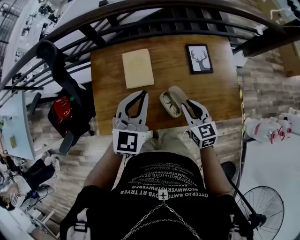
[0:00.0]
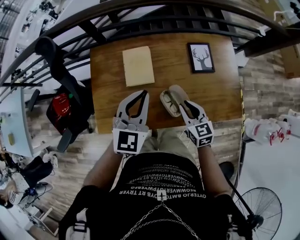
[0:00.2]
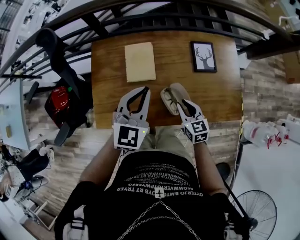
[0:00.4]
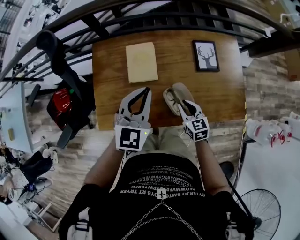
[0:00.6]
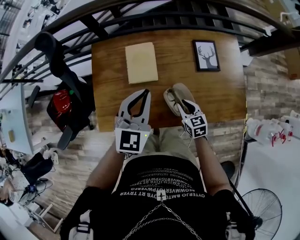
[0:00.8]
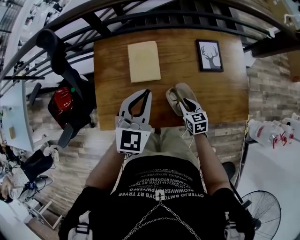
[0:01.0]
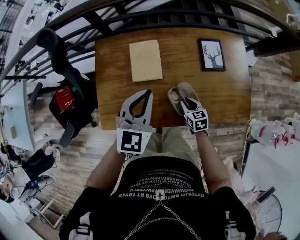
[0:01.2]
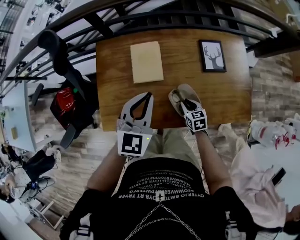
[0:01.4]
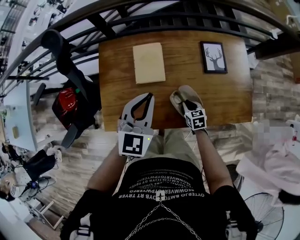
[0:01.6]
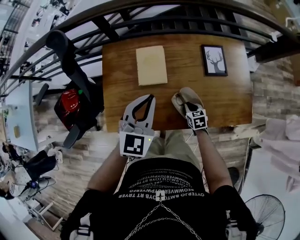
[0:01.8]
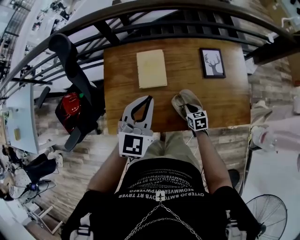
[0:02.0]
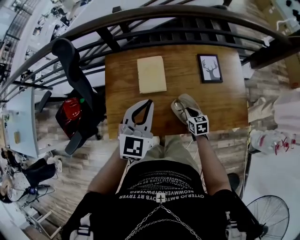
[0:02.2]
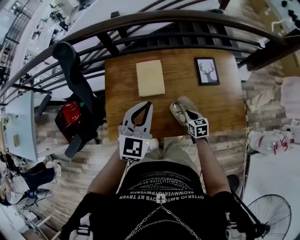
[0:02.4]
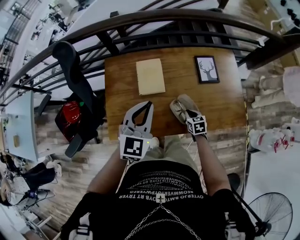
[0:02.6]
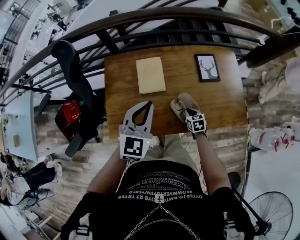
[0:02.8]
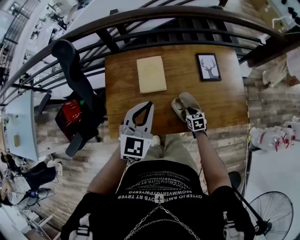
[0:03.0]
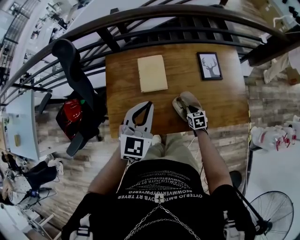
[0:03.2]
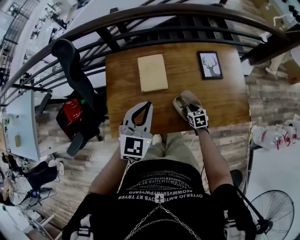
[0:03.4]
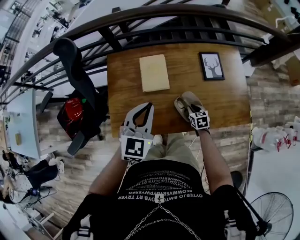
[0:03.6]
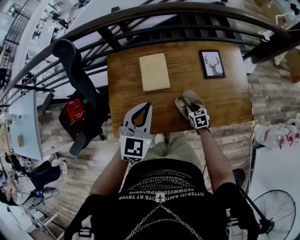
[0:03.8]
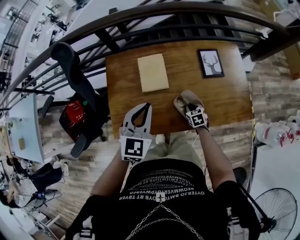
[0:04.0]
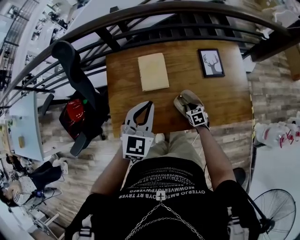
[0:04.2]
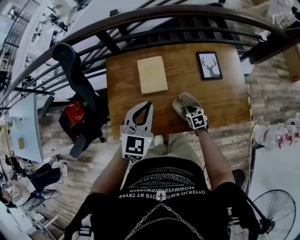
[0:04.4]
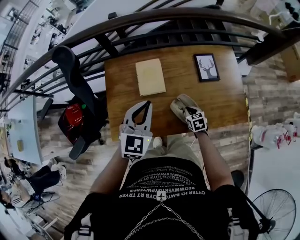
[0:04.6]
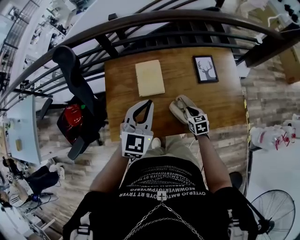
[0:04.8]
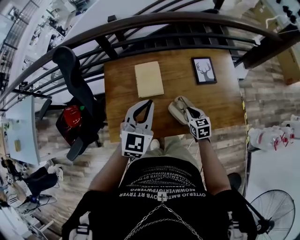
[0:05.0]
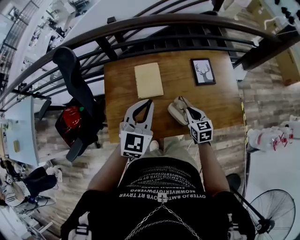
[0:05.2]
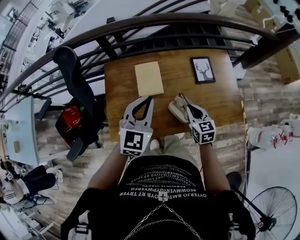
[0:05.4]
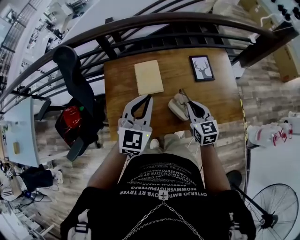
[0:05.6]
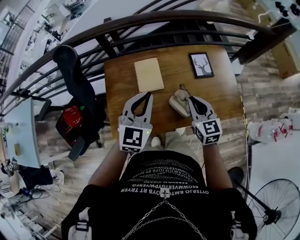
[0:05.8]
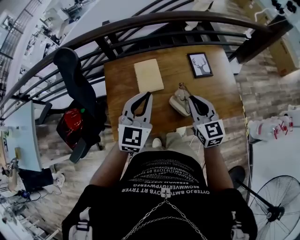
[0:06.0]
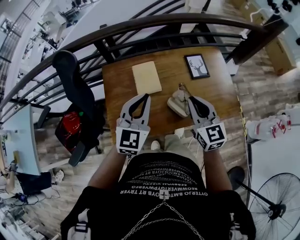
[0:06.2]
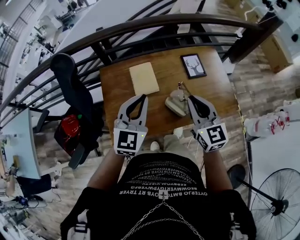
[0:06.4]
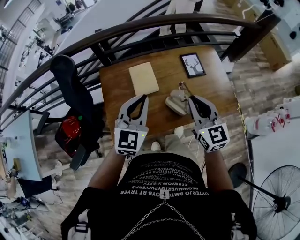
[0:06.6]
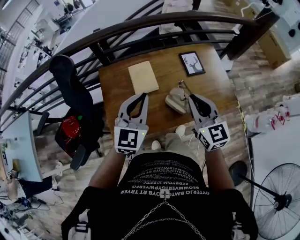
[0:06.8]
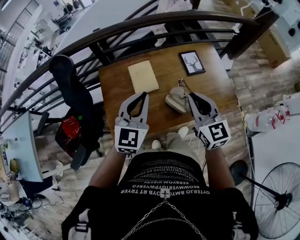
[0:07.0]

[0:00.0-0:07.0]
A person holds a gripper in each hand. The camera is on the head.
0.0 to 1.4 s: The left gripper shifts by some 5 cm. The right gripper moves downward, some 20 cm.
1.4 to 2.8 s: The left gripper shifts by some 5 cm.
2.8 to 4.2 s: The grippers stay close to where they were, moving slightly.
4.2 to 5.6 s: The left gripper travels upward by some 5 cm; the right gripper is displaced upward by some 25 cm, and points its fingers approximately 30 degrees further upward.
5.6 to 7.0 s: The right gripper moves upward, some 15 cm.

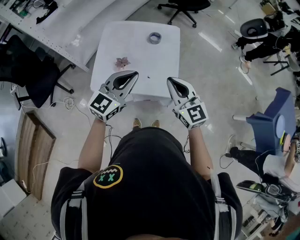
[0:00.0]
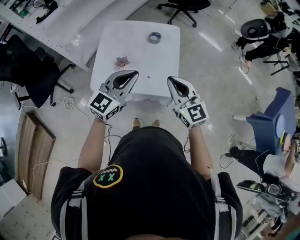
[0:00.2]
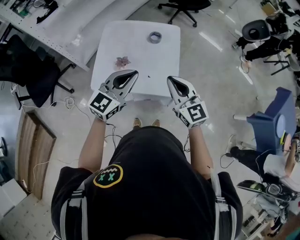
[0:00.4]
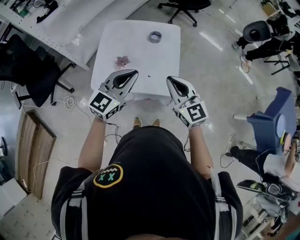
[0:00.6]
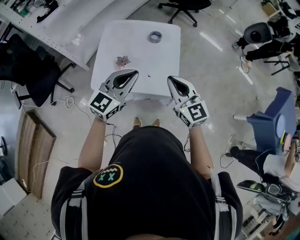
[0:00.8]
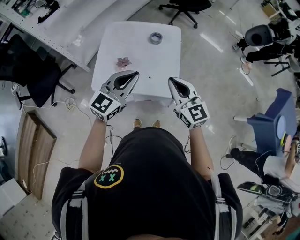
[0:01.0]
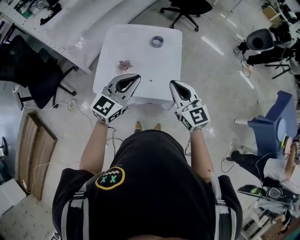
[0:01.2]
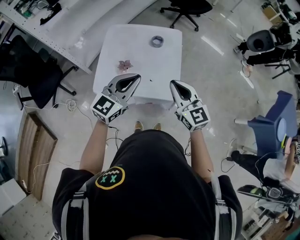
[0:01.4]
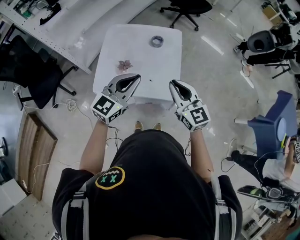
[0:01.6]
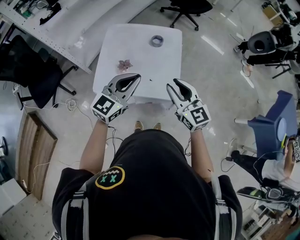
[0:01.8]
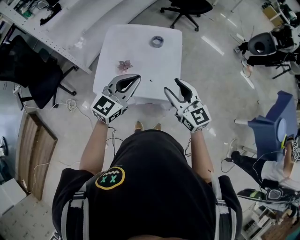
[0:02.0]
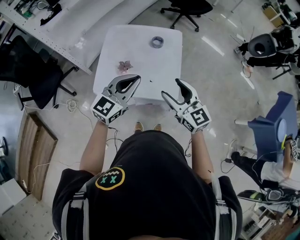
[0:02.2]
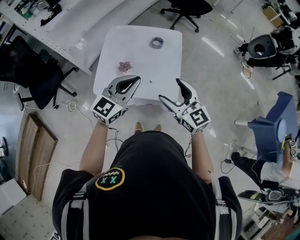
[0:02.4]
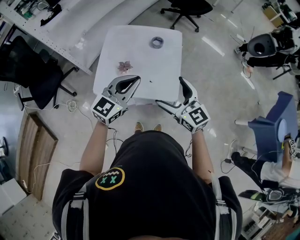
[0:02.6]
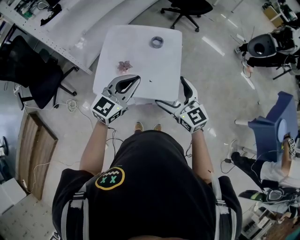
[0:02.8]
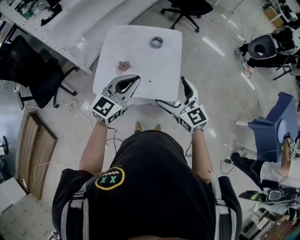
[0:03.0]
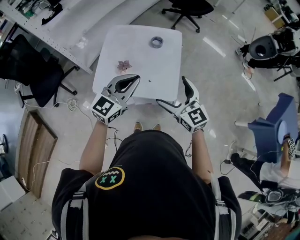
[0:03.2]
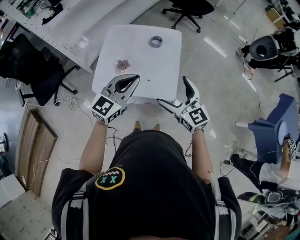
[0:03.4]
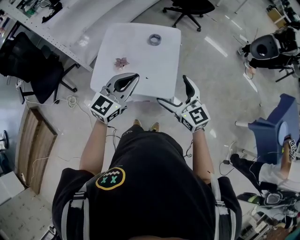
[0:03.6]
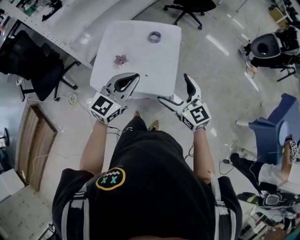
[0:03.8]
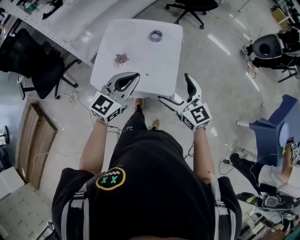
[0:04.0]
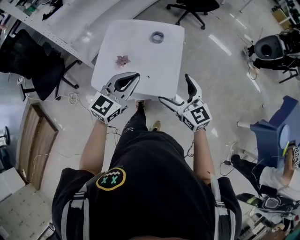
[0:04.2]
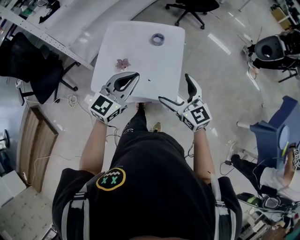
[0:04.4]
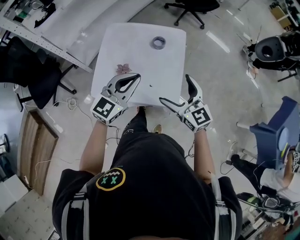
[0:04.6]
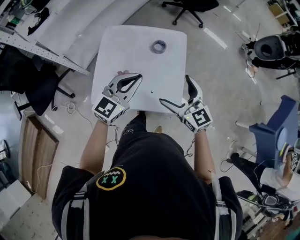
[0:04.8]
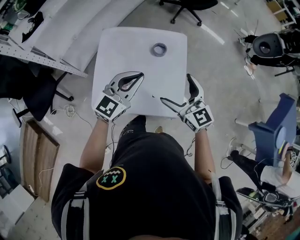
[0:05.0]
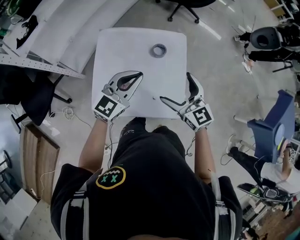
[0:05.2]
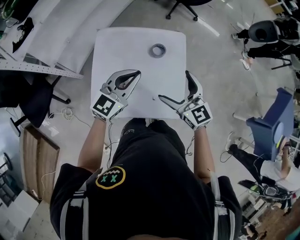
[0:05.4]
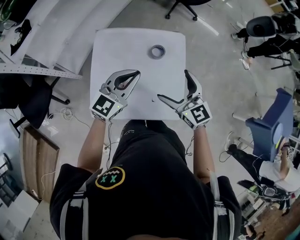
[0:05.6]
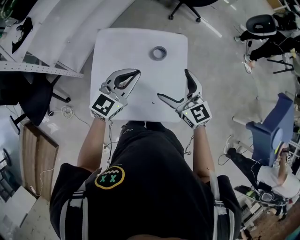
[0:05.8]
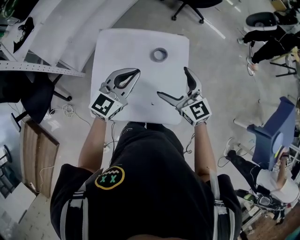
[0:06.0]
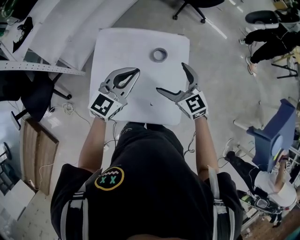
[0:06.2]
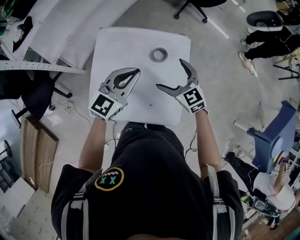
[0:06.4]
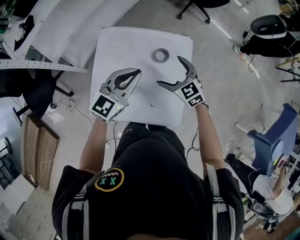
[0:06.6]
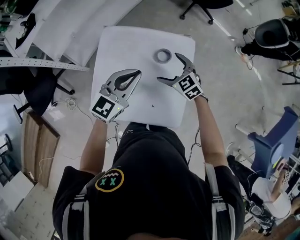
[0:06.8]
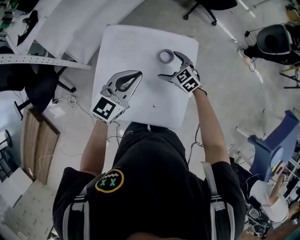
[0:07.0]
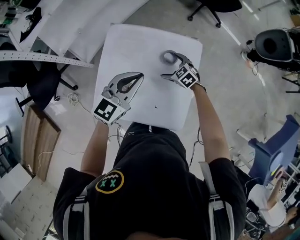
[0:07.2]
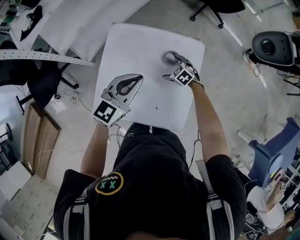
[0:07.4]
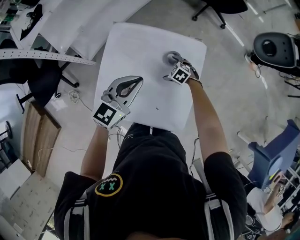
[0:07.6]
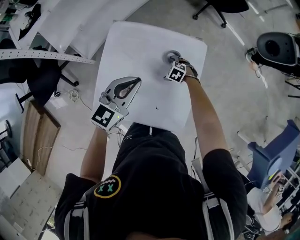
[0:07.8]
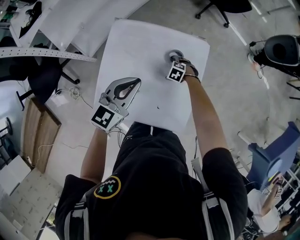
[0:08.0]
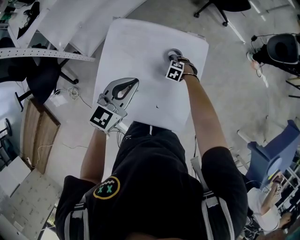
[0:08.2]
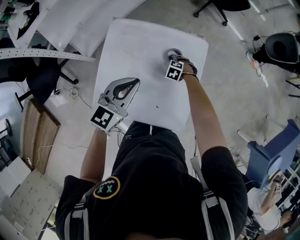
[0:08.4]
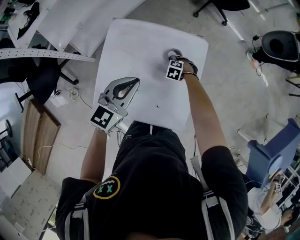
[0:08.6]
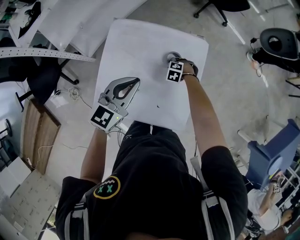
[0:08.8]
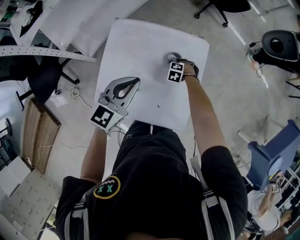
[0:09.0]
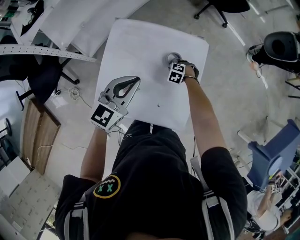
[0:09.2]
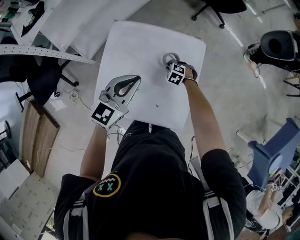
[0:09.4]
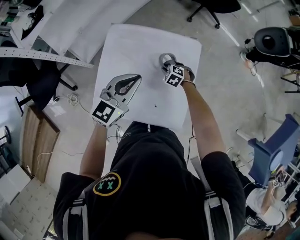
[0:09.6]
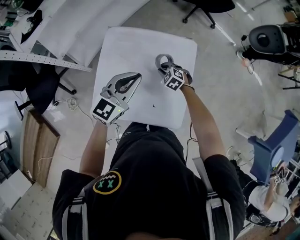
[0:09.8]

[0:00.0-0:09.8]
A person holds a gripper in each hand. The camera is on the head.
0.0 to 1.4 s: Both grippers stay put.
1.4 to 2.8 s: The right gripper opens up.
2.8 to 4.2 s: The right gripper shifts about 5 cm to the right.
4.2 to 5.6 s: The two grippers go about 25 cm forward.
5.6 to 7.0 s: The right gripper travels downward and forward by some 25 cm, and rotates some 30 degrees.
7.0 to 8.4 s: The right gripper shifts some 20 cm downward, and angles its fingers downward, by approximately 30 degrees.
8.4 to 9.8 s: The right gripper moves upward, some 10 cm, changes its angle by roughly 20 degrees, and closes up.

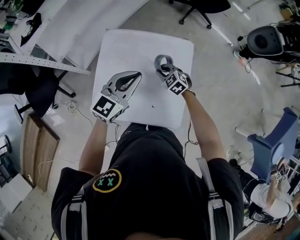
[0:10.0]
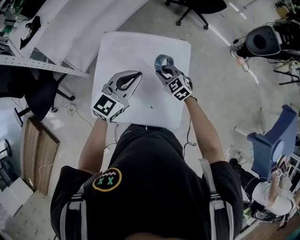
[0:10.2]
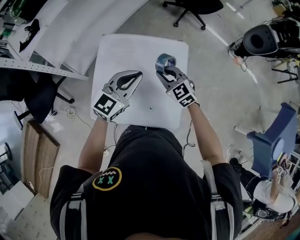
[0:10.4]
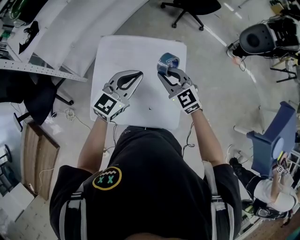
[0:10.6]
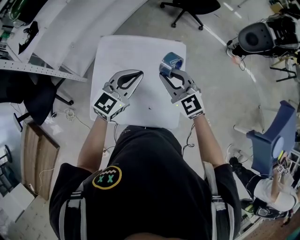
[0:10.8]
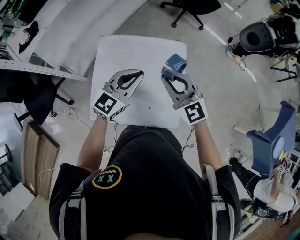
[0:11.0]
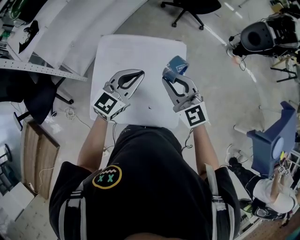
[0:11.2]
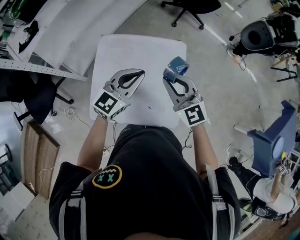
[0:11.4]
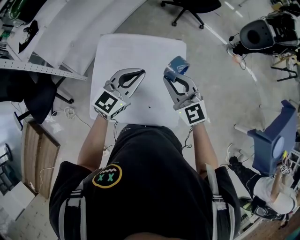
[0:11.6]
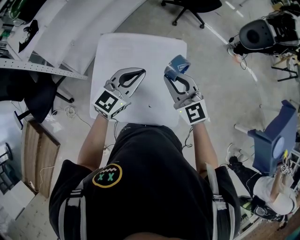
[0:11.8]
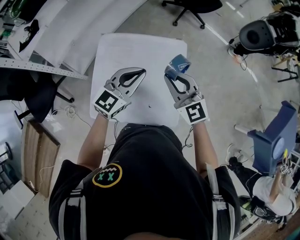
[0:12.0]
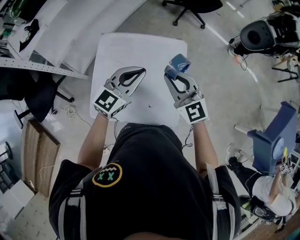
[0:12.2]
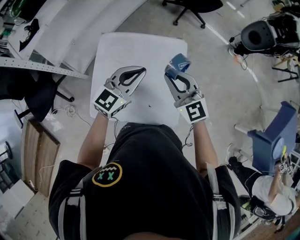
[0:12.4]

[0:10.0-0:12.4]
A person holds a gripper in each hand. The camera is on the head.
10.0 to 11.2 s: The right gripper travels upward by about 25 cm, and angles its fingers upward, by some 40 degrees.
11.2 to 12.4 s: The grippers move only a little.

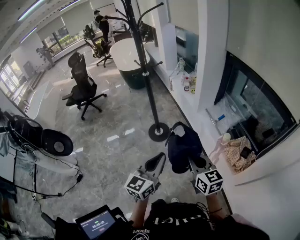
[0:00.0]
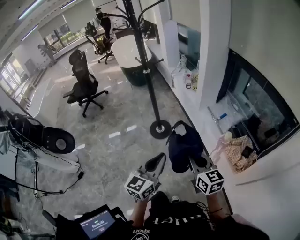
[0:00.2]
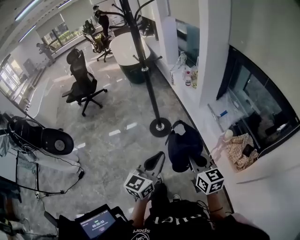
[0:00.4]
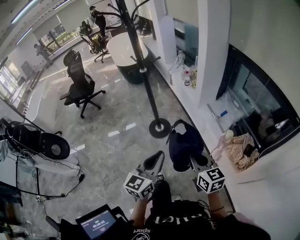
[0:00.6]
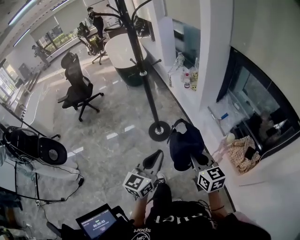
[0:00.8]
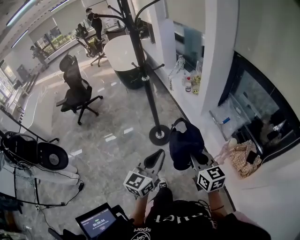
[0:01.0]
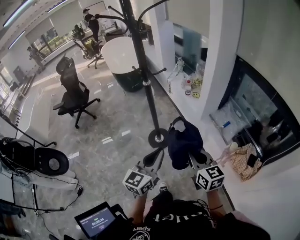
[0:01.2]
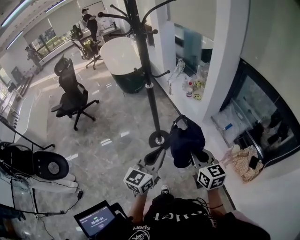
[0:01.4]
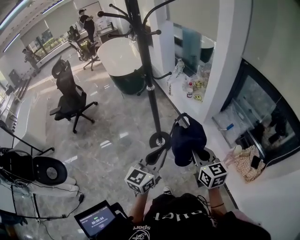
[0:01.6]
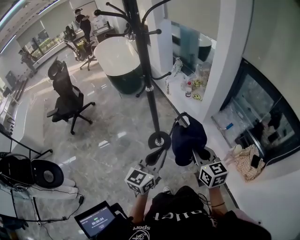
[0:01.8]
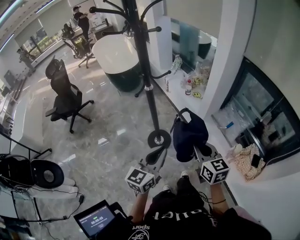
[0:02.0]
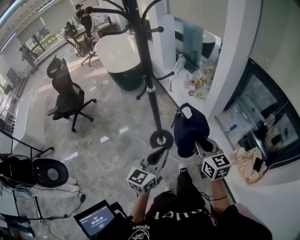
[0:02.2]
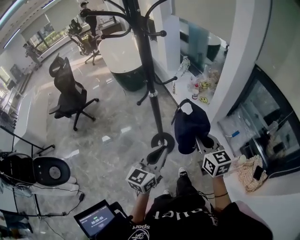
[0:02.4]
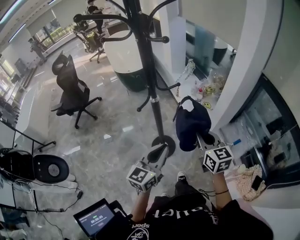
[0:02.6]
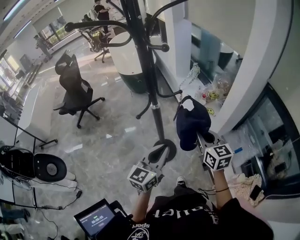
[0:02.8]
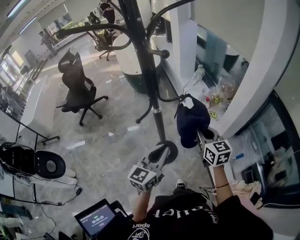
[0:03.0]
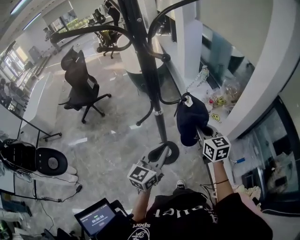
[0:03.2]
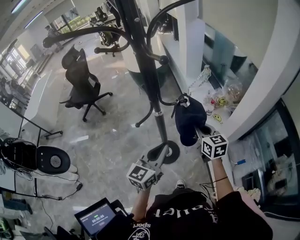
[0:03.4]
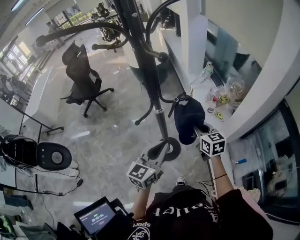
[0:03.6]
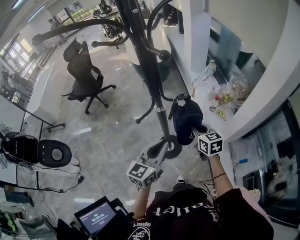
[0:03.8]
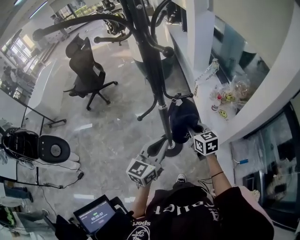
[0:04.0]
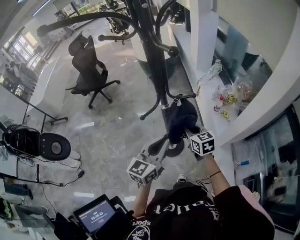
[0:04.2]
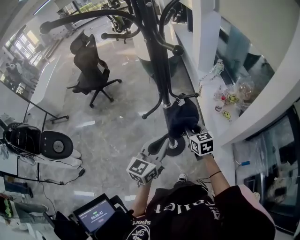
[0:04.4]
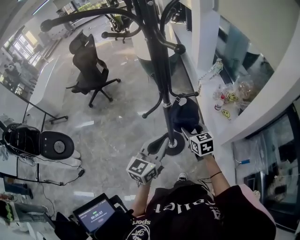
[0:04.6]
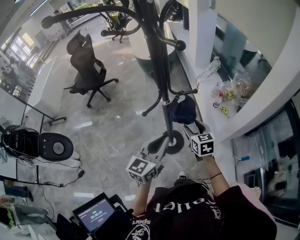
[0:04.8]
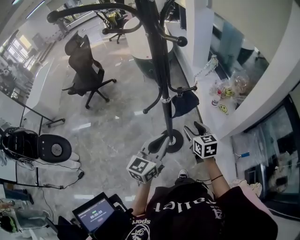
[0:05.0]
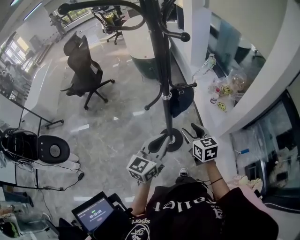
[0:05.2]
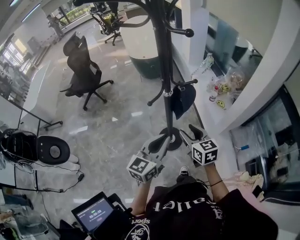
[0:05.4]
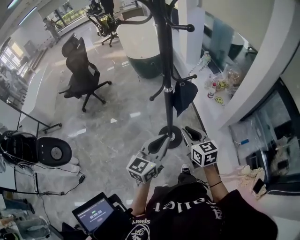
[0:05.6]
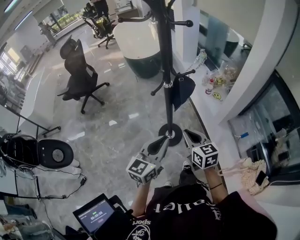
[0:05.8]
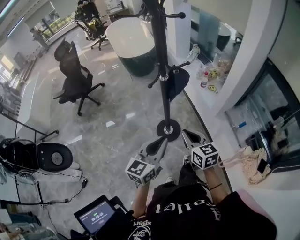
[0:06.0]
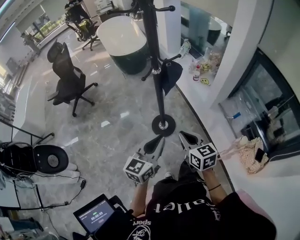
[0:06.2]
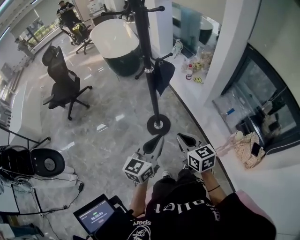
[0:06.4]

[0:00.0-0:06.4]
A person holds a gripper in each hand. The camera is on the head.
0.0 to 1.6 s: The grippers both shift forward and to the left by roughly 30 cm.
1.6 to 3.2 s: The grippers both shift forward by approximately 30 cm.
3.2 to 4.8 s: The right gripper is displaced downward and to the left by approximately 10 cm, and opens up.
4.8 to 6.4 s: The grippers both shift backward by some 30 cm. The right gripper closes up.
